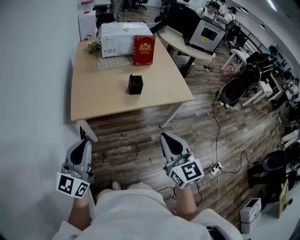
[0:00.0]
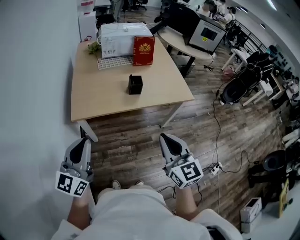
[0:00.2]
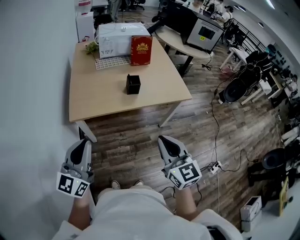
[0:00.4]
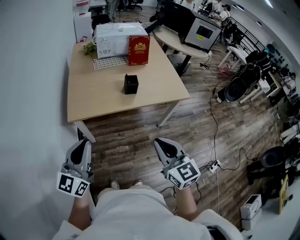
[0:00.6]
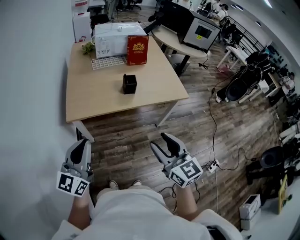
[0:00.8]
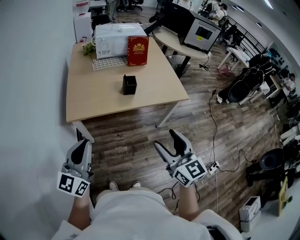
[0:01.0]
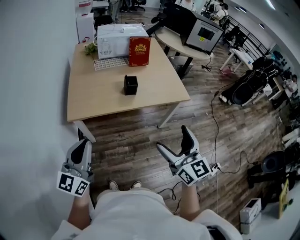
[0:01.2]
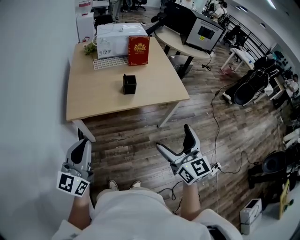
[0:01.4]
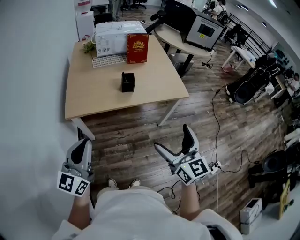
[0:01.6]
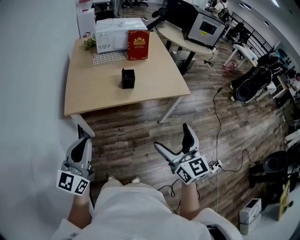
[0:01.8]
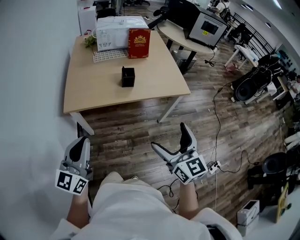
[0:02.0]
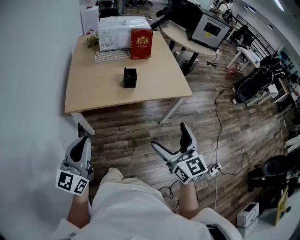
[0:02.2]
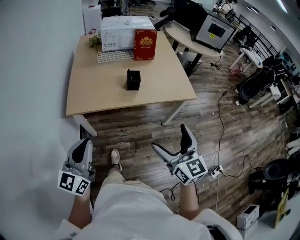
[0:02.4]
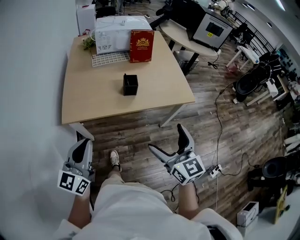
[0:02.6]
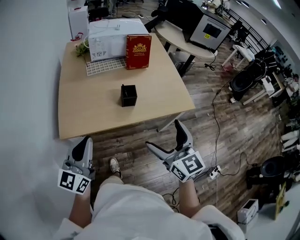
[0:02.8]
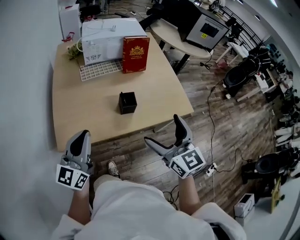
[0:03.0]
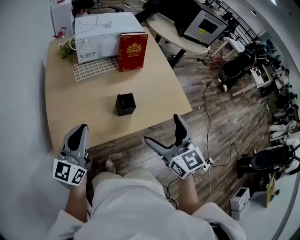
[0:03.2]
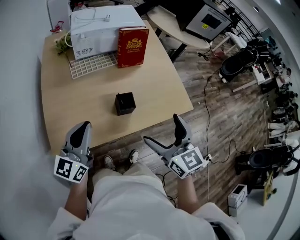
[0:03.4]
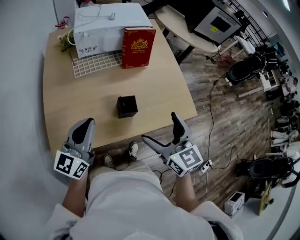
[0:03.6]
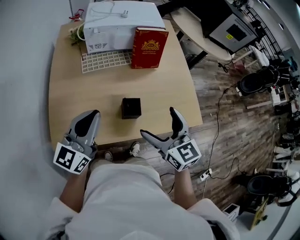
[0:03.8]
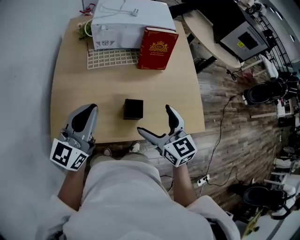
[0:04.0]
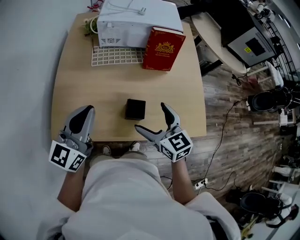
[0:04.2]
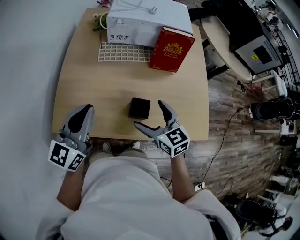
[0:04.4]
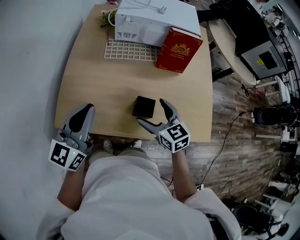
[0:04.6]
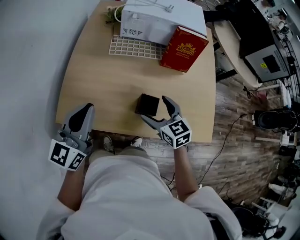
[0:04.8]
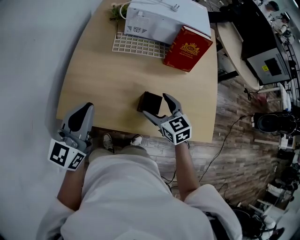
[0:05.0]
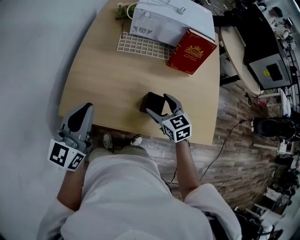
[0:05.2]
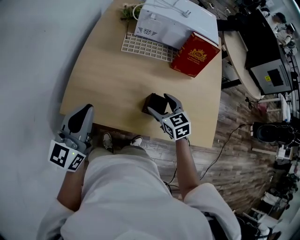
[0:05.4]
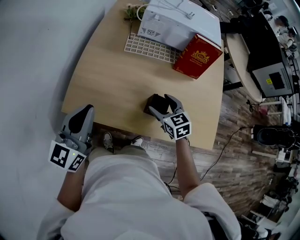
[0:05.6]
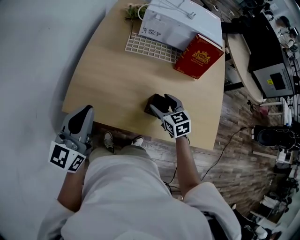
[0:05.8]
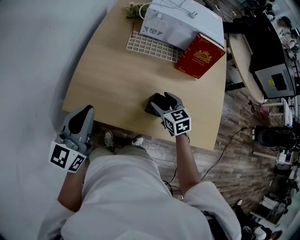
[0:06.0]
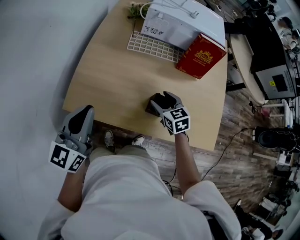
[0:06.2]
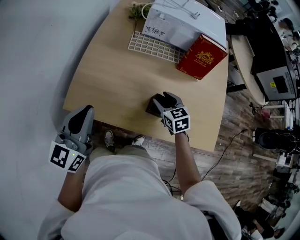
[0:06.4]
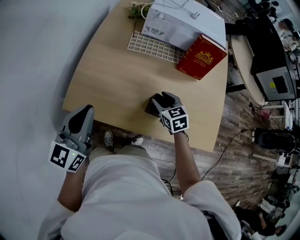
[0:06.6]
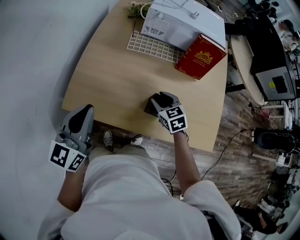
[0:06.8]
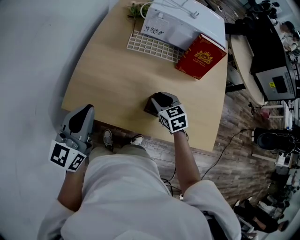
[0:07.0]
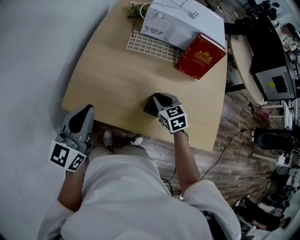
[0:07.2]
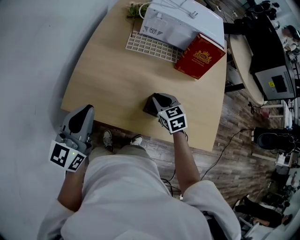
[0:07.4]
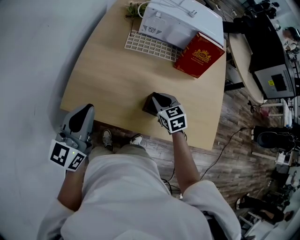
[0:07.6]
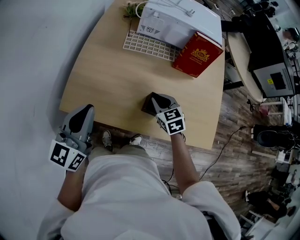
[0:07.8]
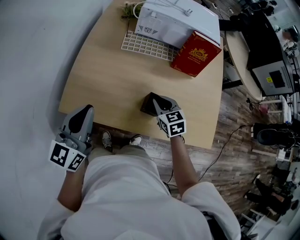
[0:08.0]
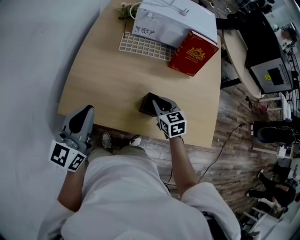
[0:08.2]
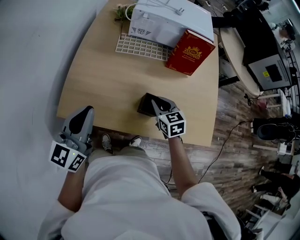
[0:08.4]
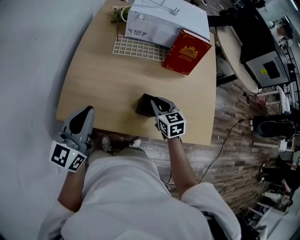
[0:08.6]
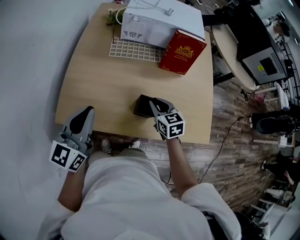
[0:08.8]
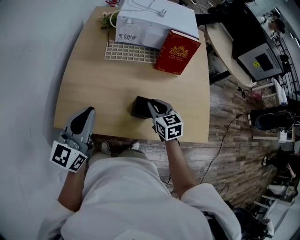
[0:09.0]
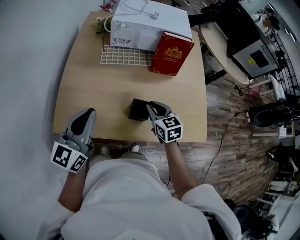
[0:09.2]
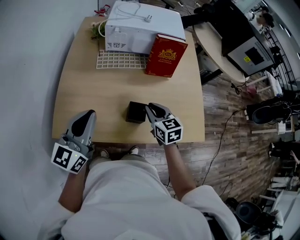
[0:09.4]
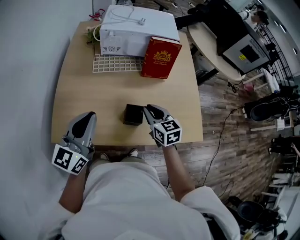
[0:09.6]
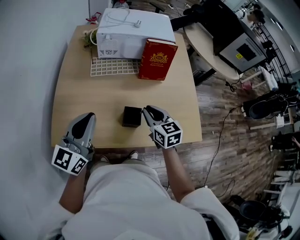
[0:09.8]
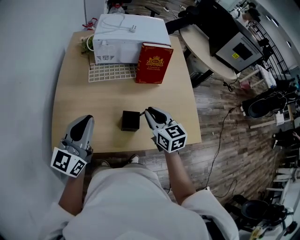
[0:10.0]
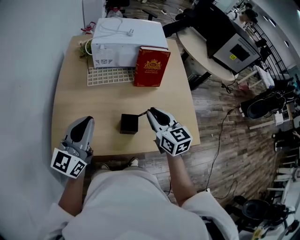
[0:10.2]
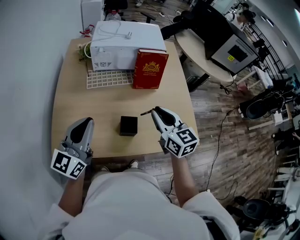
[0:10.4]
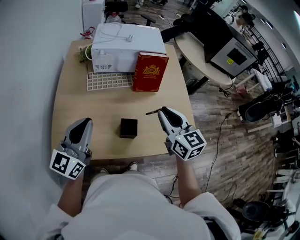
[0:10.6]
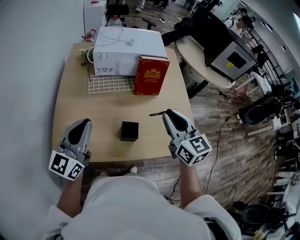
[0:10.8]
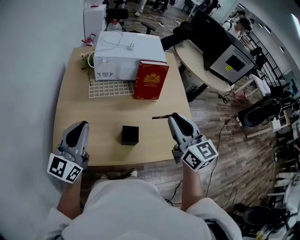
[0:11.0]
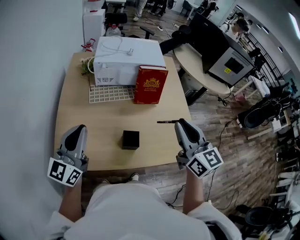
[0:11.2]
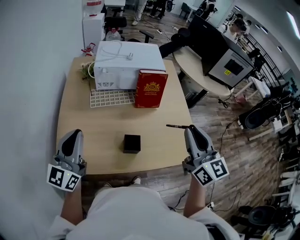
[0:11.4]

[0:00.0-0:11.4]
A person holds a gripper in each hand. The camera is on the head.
0:00.0 to 0:01.4: The left gripper goes some 5 cm to the right, while the right gripper heads to the right, covering about 10 cm, and opens up.
0:01.4 to 0:02.8: The grippers both shift forward by about 15 cm.
0:02.8 to 0:04.2: Both grippers move forward, roughly 30 cm. The right gripper swivels roughly 20 degrees.
0:04.2 to 0:05.6: The left gripper moves to the left, some 10 cm. Meanwhile the right gripper heads downward and forward, covering roughly 10 cm.
0:05.6 to 0:07.2: The right gripper closes.
0:07.2 to 0:08.6: The grippers stay close to where they were, moving slightly.
0:08.6 to 0:10.0: The left gripper travels to the right by about 5 cm. Meanwhile the right gripper travels upward and to the right by some 10 cm.
0:10.0 to 0:11.4: The right gripper heads upward and to the right, covering about 20 cm, and rotates roughly 30 degrees; the left gripper travels to the left and upward by about 10 cm.

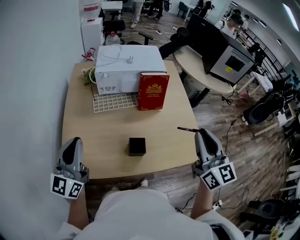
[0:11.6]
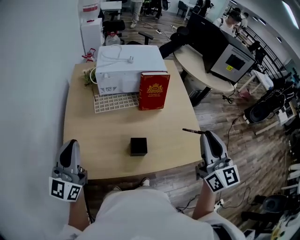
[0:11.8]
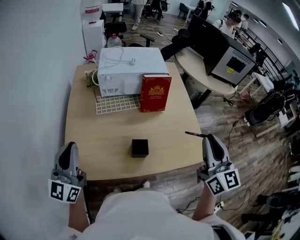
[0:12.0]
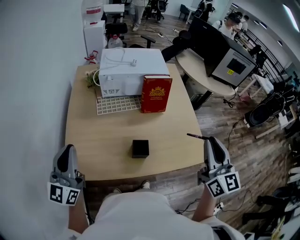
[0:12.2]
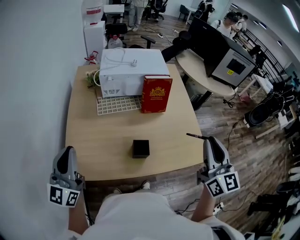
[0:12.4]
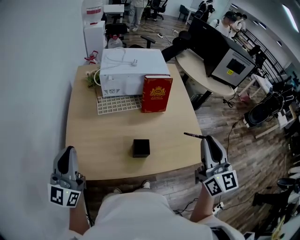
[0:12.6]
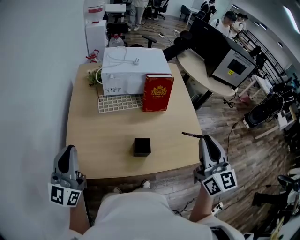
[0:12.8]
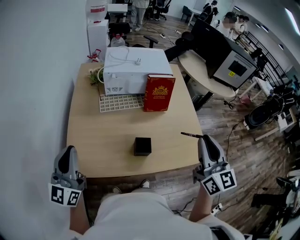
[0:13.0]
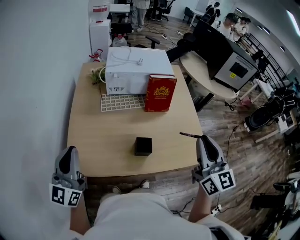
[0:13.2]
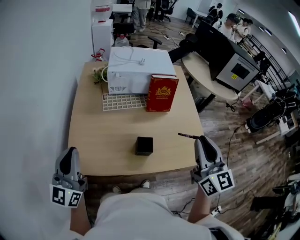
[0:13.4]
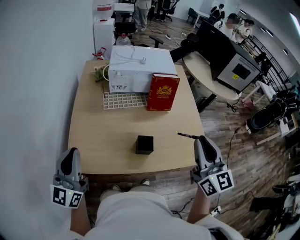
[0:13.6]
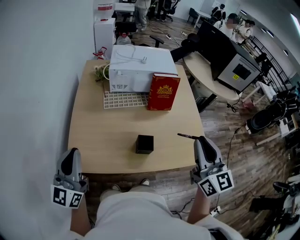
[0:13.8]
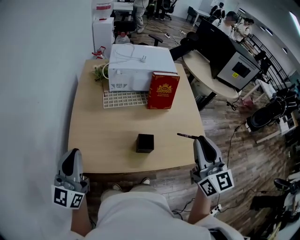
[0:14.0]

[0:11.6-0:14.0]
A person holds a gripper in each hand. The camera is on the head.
0:11.6 to 0:12.8: The left gripper changes place by roughly 5 cm.
0:12.8 to 0:14.0: The grippers stay close to where they were, moving slightly.

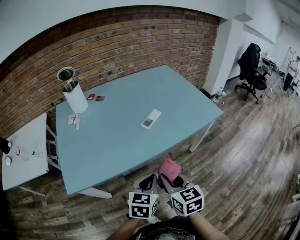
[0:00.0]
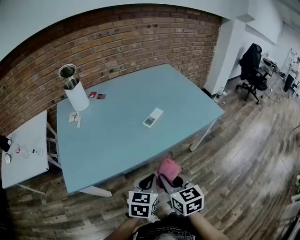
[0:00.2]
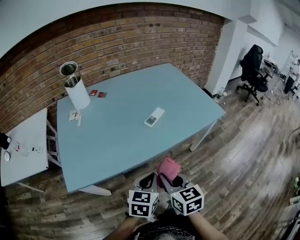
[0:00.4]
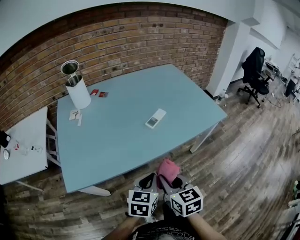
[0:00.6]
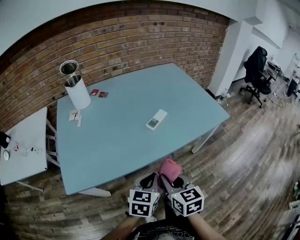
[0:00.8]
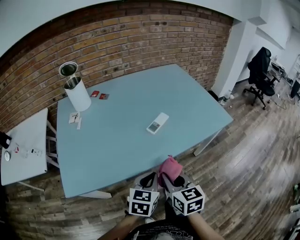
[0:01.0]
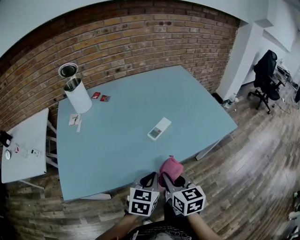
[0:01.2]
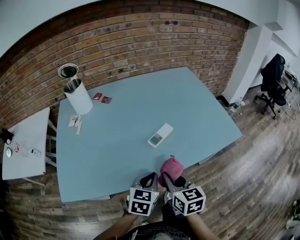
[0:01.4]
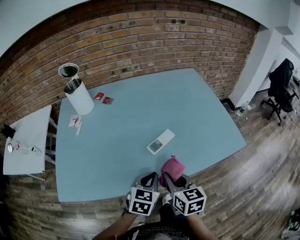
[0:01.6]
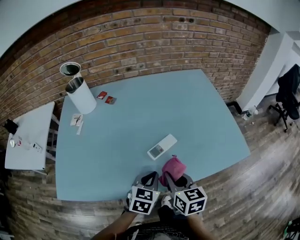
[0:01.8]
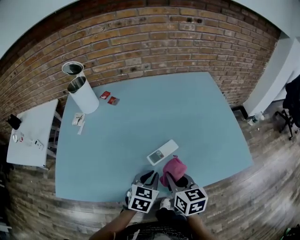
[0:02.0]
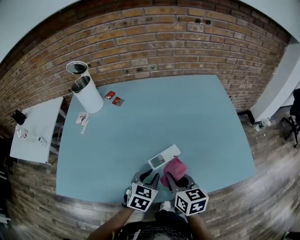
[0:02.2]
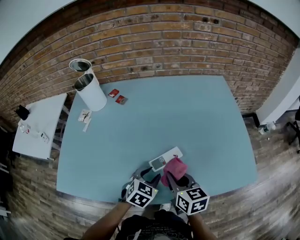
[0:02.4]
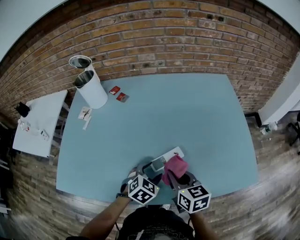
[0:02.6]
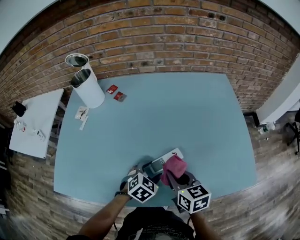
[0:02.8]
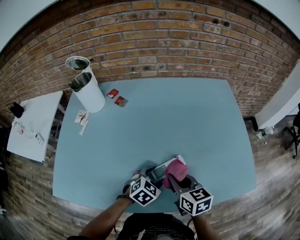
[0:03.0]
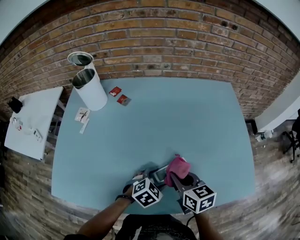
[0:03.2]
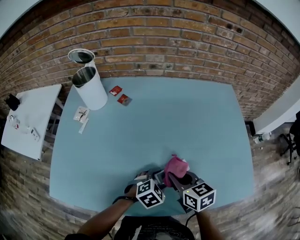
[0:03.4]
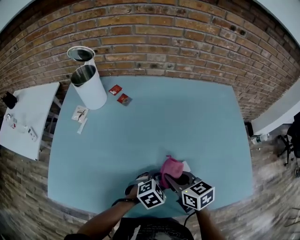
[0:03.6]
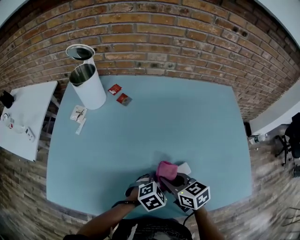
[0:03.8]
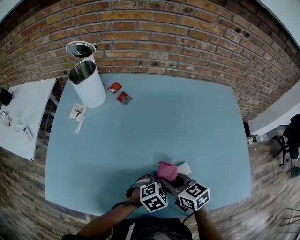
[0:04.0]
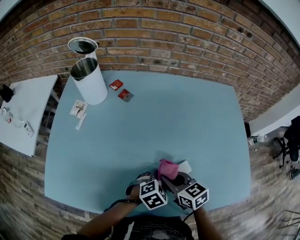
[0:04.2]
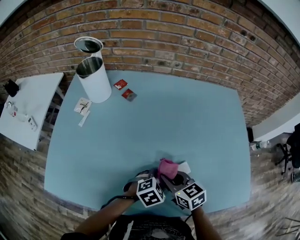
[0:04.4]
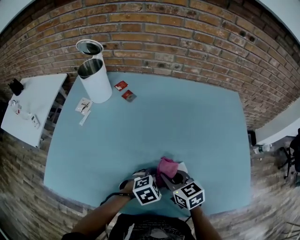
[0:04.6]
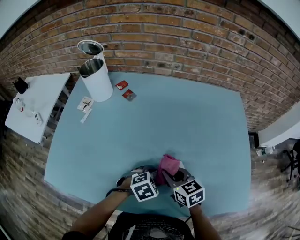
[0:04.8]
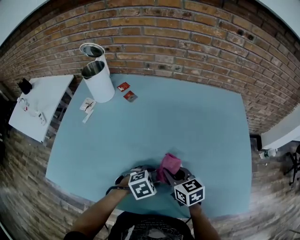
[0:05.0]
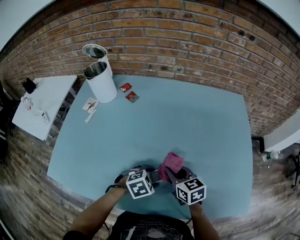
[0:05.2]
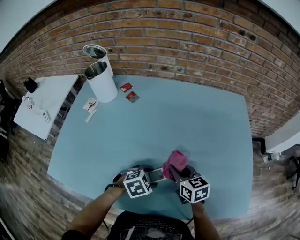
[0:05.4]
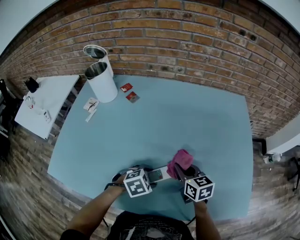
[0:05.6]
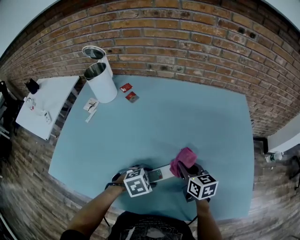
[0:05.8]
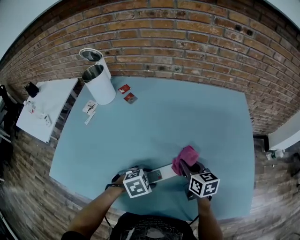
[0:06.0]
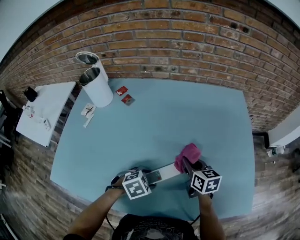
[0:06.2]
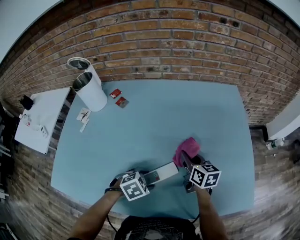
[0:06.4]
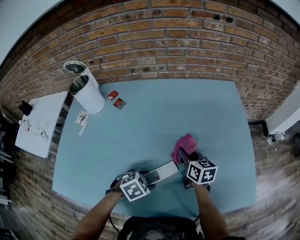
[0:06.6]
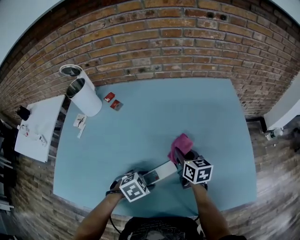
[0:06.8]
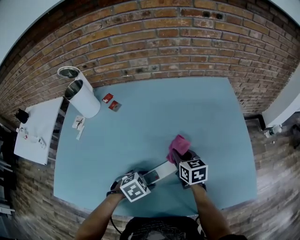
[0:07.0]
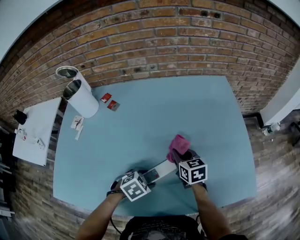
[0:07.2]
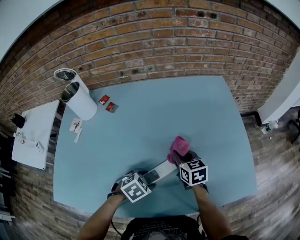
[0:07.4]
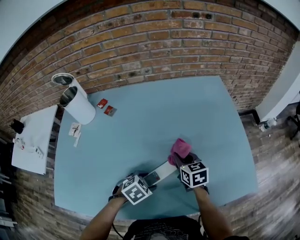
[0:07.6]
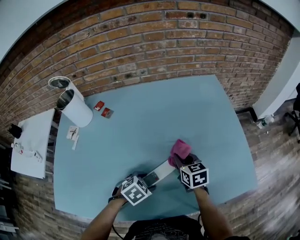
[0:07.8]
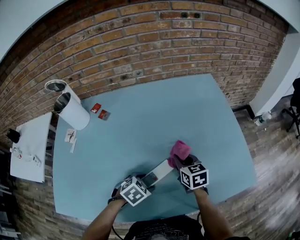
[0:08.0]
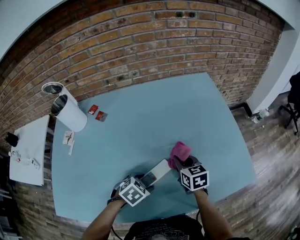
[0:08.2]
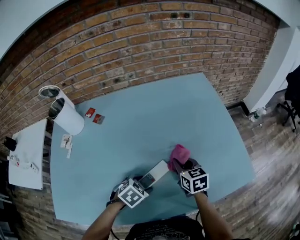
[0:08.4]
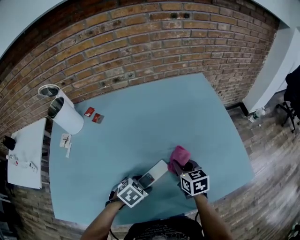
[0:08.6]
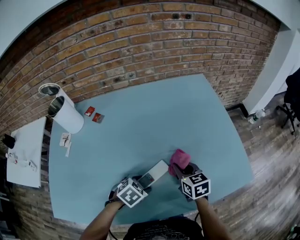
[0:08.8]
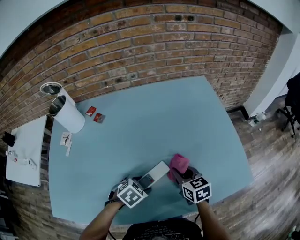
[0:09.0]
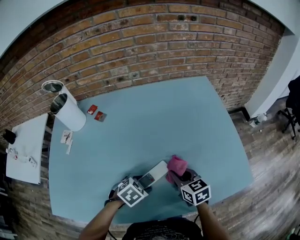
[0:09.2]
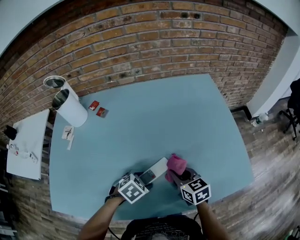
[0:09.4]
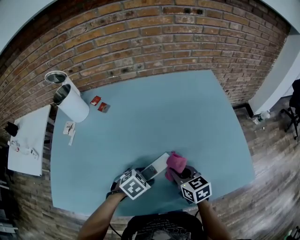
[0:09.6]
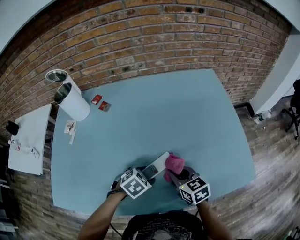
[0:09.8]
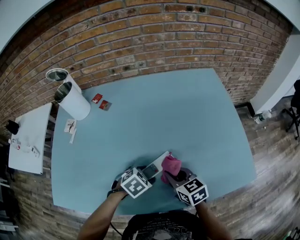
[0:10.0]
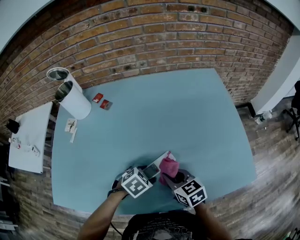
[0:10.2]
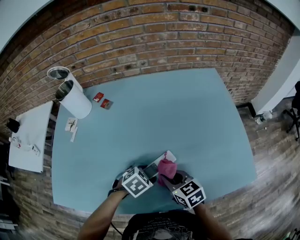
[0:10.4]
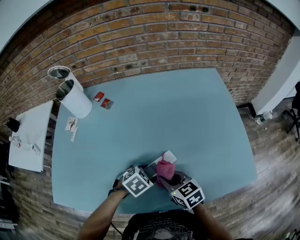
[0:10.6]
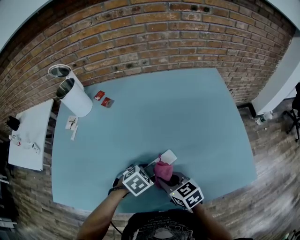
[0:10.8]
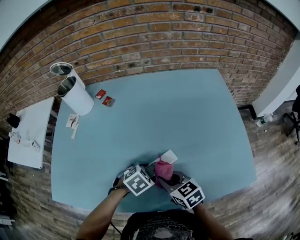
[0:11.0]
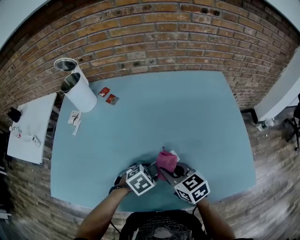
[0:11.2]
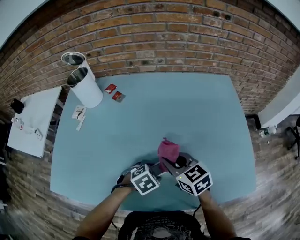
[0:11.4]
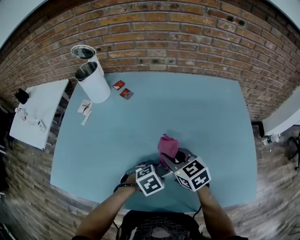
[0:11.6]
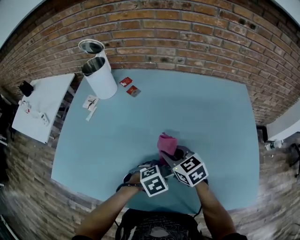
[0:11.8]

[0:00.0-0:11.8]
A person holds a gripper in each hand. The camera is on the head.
0:00.0 to 0:01.4: The two grippers go some 15 cm forward.
0:01.4 to 0:03.0: The left gripper moves forward and downward, roughly 20 cm, changes its angle by some 20 degrees, and opens up, while the right gripper shifts some 20 cm forward, and changes its angle by some 20 degrees.
0:03.0 to 0:04.4: The right gripper goes about 5 cm to the left, and changes its angle by about 20 degrees.
0:04.4 to 0:06.0: The right gripper heads to the right and forward, covering about 15 cm.
0:06.0 to 0:07.4: The grippers move only a little.
0:07.4 to 0:08.8: The right gripper shifts approximately 5 cm to the right.
0:08.8 to 0:10.4: The right gripper heads backward and to the left, covering some 10 cm, and rotates some 20 degrees.
0:10.4 to 0:11.8: The right gripper heads forward and to the left, covering some 10 cm.
